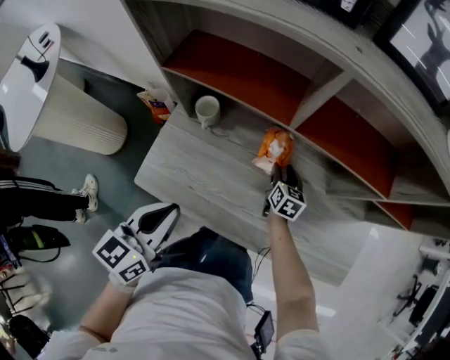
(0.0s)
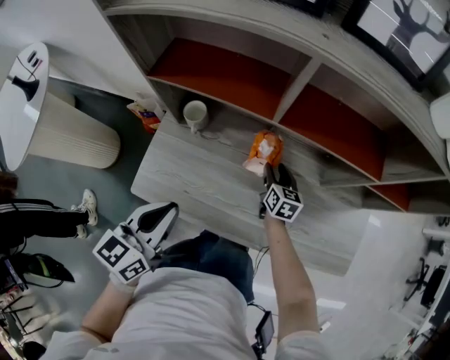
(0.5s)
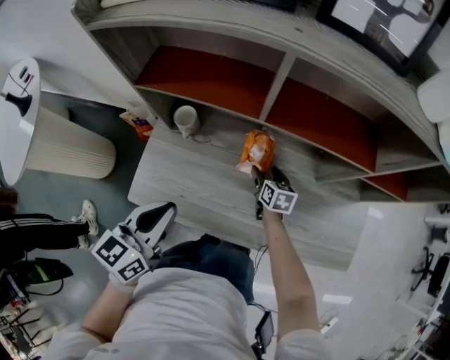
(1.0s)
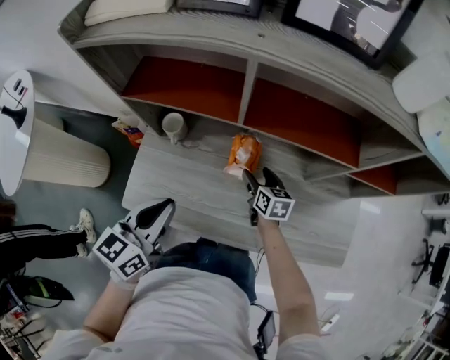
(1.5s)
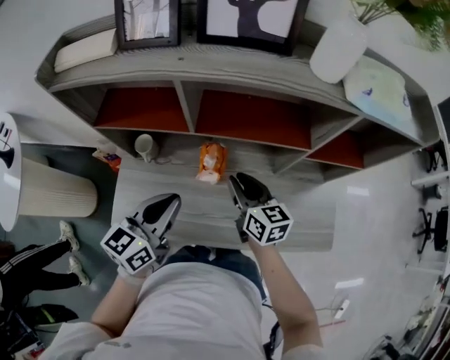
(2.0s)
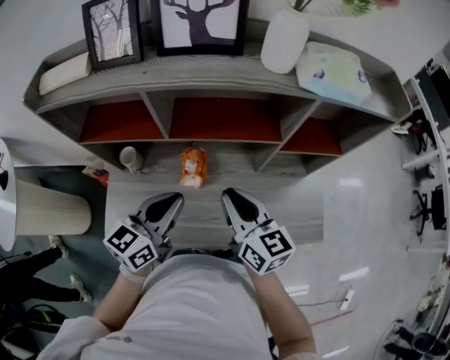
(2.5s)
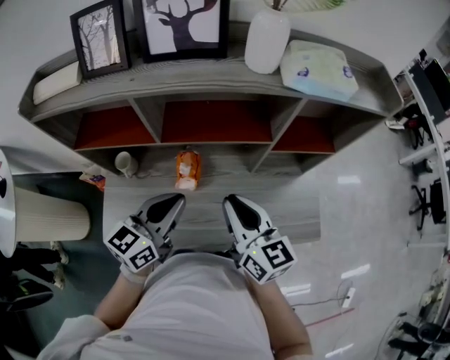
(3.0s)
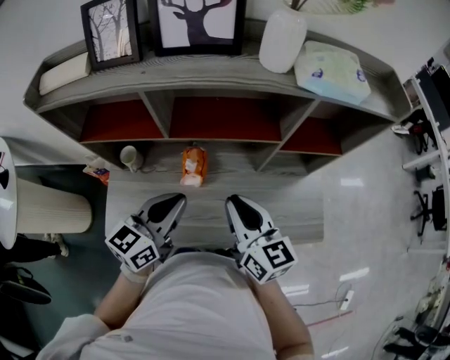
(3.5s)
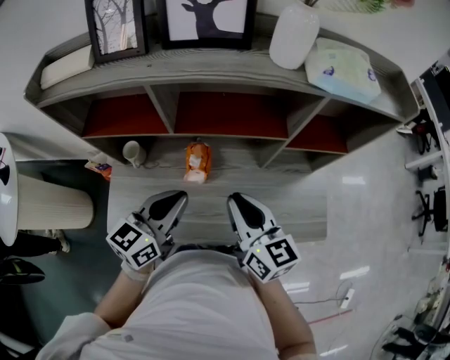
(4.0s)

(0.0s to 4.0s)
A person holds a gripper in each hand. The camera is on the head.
0.0s - 2.0s: The left gripper is displaced to the right, forward and upward by some 15 cm; the right gripper shifts roughly 20 cm upward, and opens, then closes again.
2.0s - 4.0s: The right gripper is displaced upward and backward by approximately 15 cm. The left gripper is displaced to the right by some 5 cm.

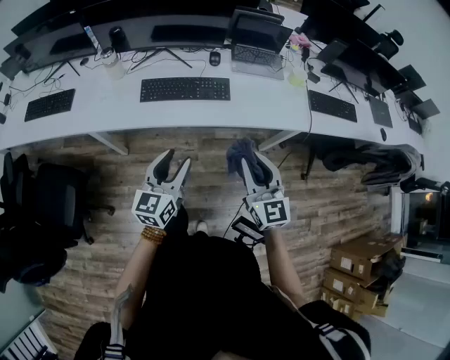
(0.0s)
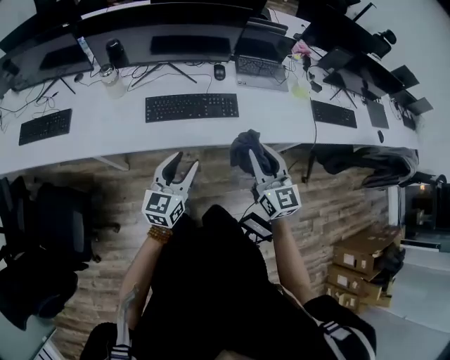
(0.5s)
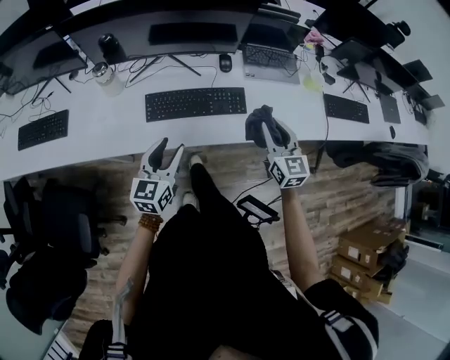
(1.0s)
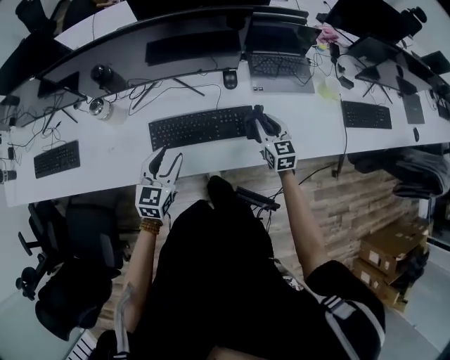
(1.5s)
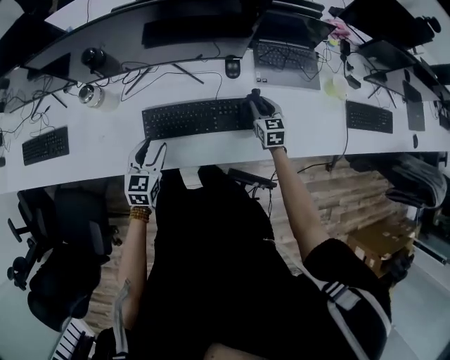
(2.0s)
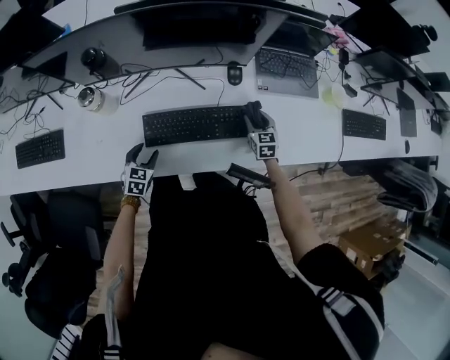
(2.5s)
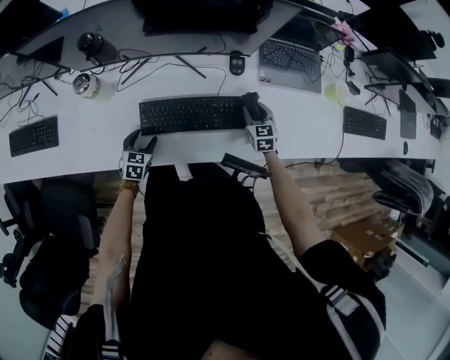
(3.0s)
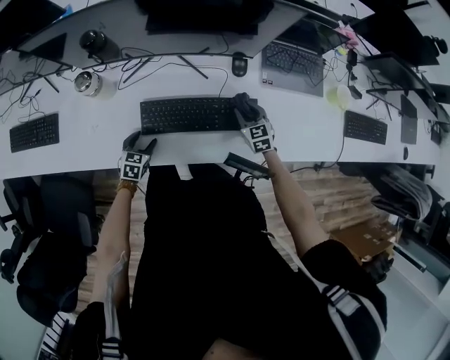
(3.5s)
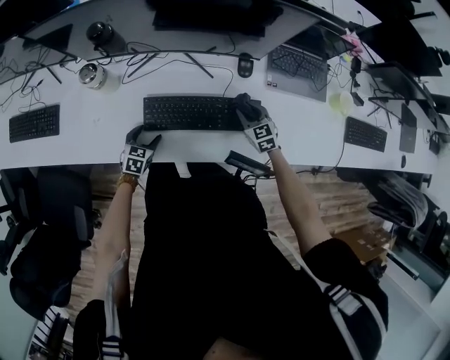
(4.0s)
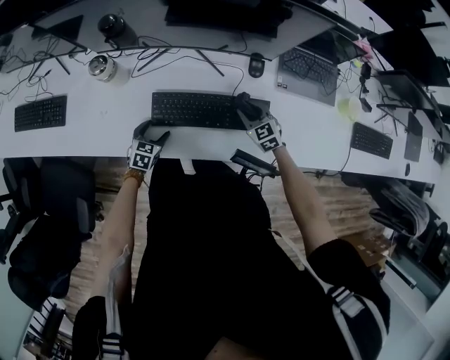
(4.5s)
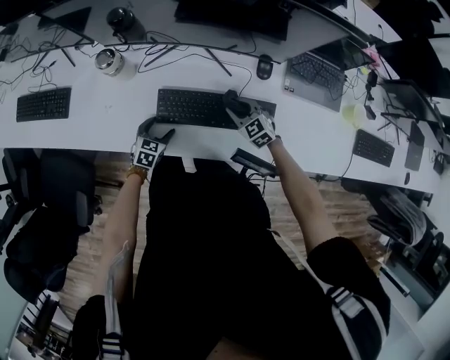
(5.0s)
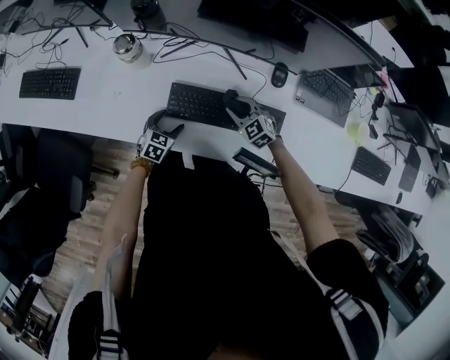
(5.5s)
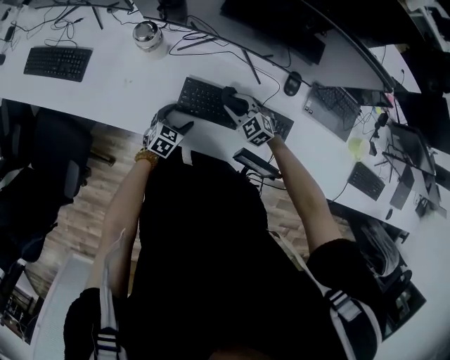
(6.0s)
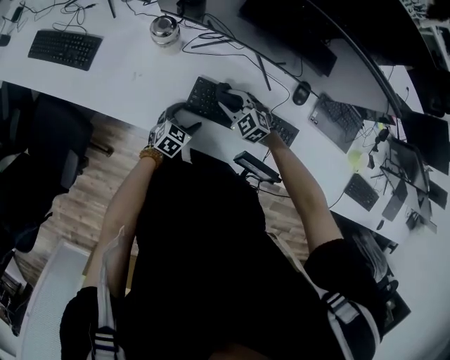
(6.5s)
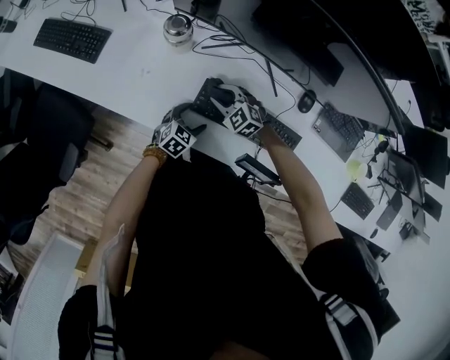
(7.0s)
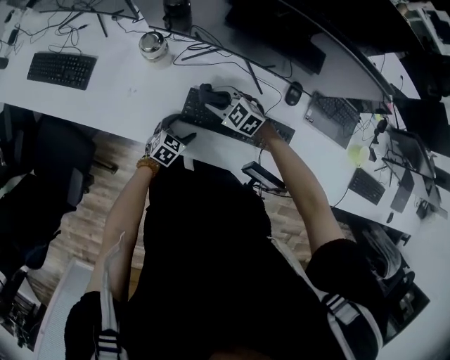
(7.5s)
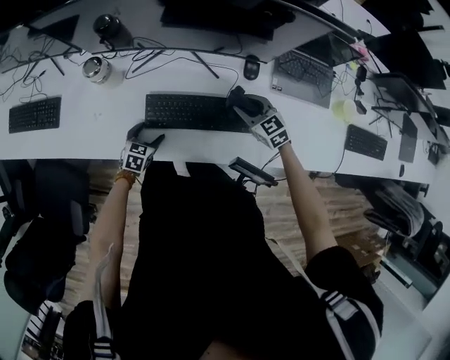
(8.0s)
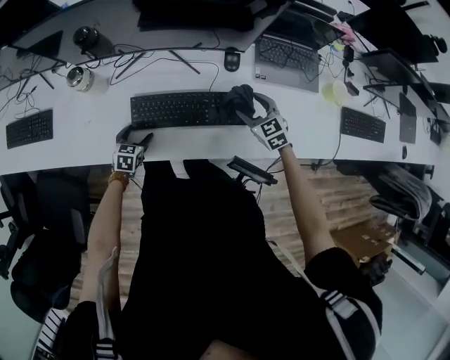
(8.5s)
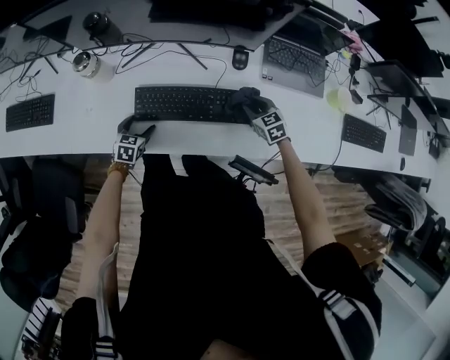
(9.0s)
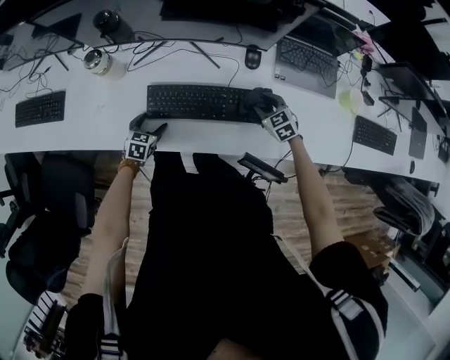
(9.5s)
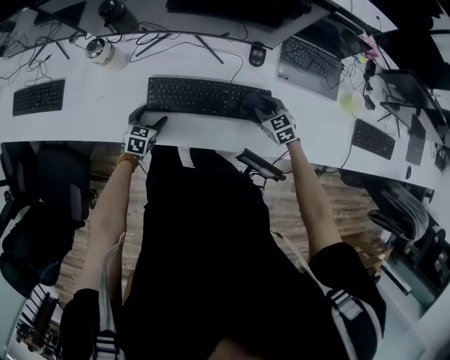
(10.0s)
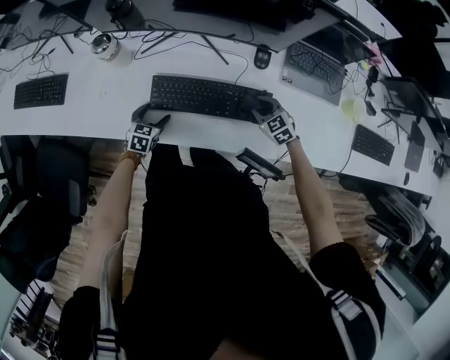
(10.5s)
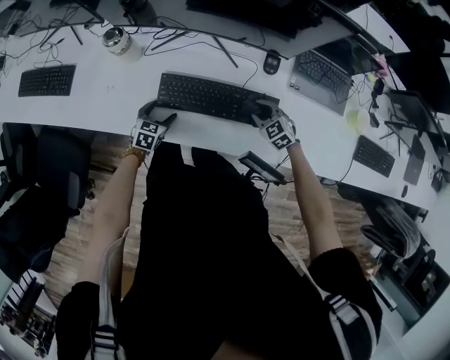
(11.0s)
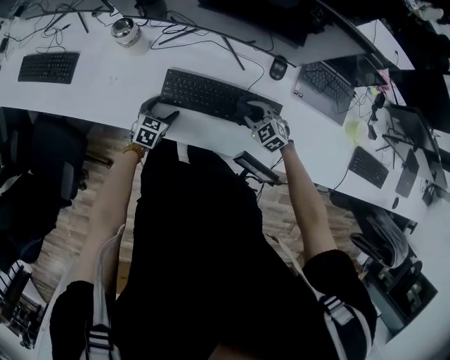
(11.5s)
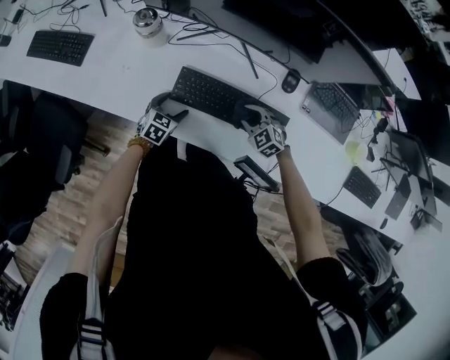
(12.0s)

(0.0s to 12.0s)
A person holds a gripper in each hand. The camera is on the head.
0.0s - 2.0s: The left gripper moves forward, downward and to the left, about 40 cm, and changes its angle by about 30 degrees. Meanwhile the right gripper travels forward and downward by some 50 cm, and rotates roughly 30 degrees.
2.0s - 4.0s: The right gripper heads to the left, covering some 10 cm, and rotates about 20 degrees, while the left gripper travels downward by approximately 15 cm.
4.0s - 6.0s: The right gripper goes about 20 cm to the left, and turns by some 40 degrees.
6.0s - 8.0s: The right gripper travels to the right and upward by roughly 15 cm, and changes its angle by some 30 degrees.
8.0s - 10.0s: The right gripper shifts about 10 cm downward and to the right, and opens and closes again.
10.0s - 12.0s: The right gripper heads to the left, covering about 15 cm, and rotates roughly 30 degrees.

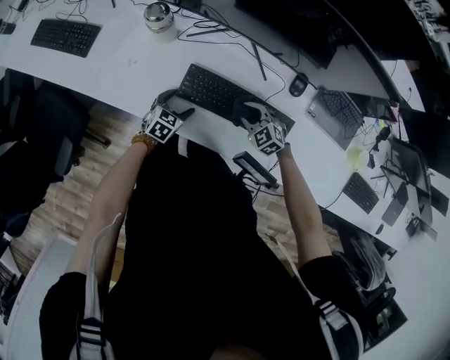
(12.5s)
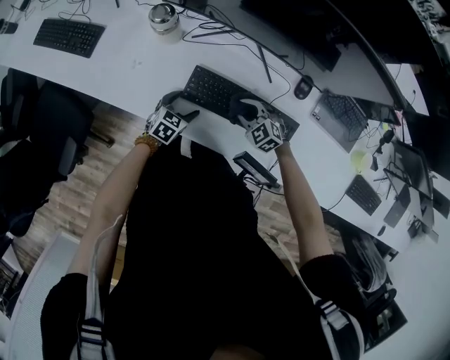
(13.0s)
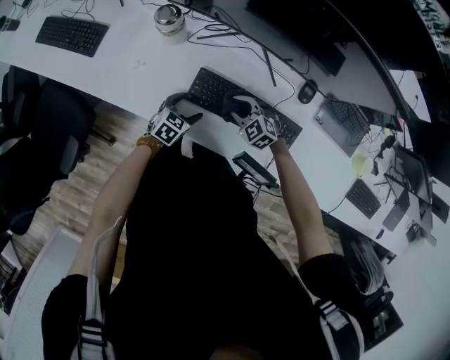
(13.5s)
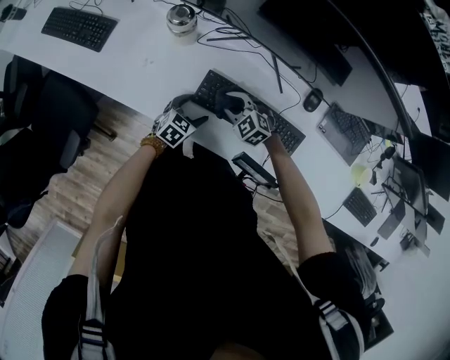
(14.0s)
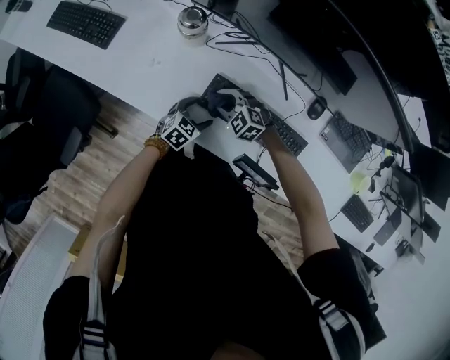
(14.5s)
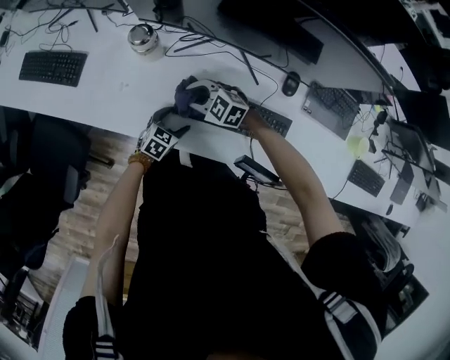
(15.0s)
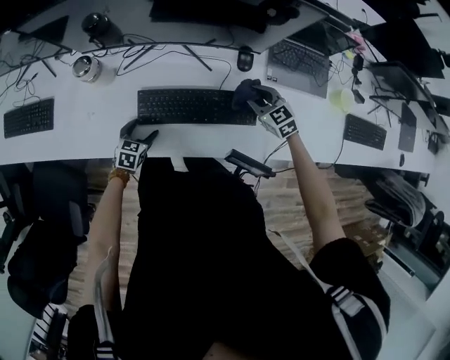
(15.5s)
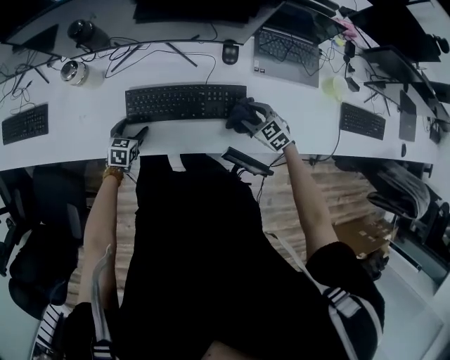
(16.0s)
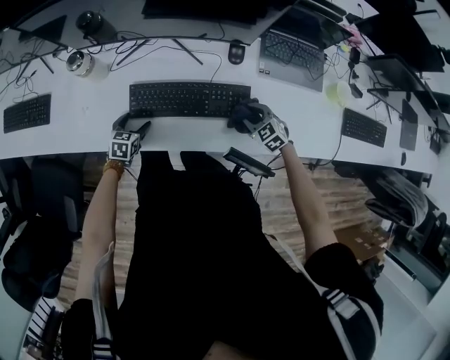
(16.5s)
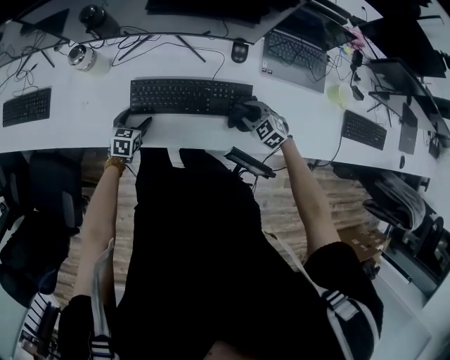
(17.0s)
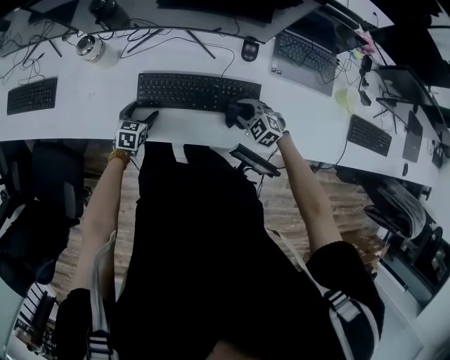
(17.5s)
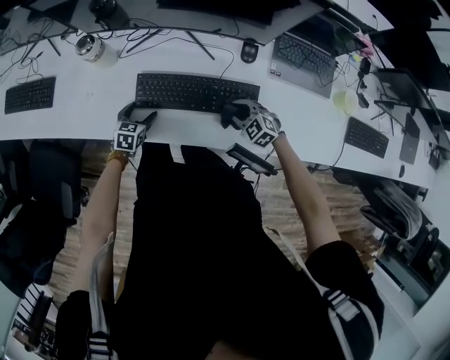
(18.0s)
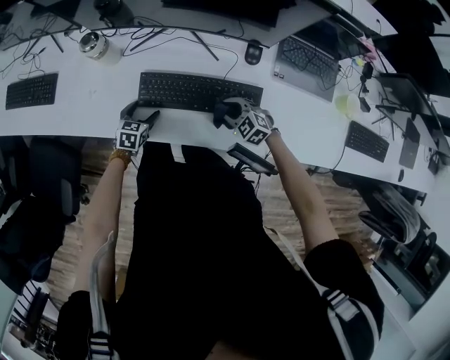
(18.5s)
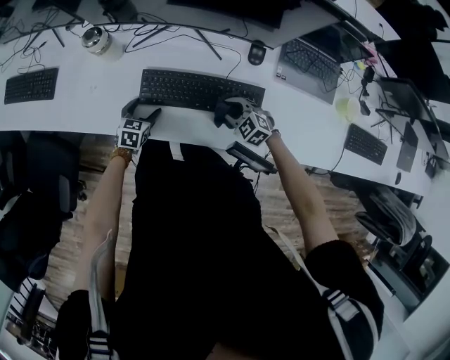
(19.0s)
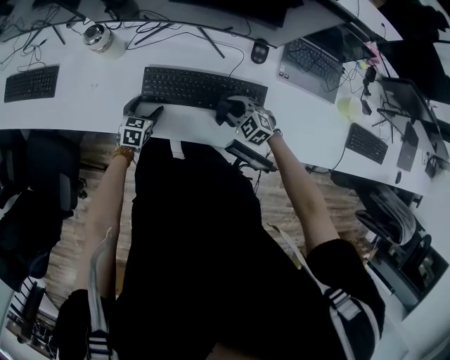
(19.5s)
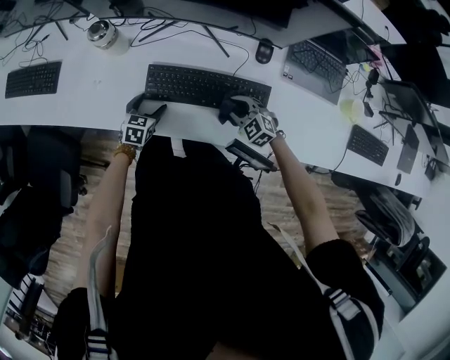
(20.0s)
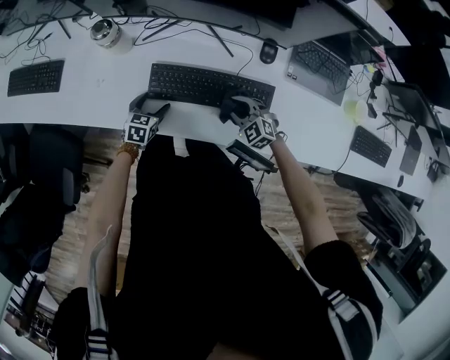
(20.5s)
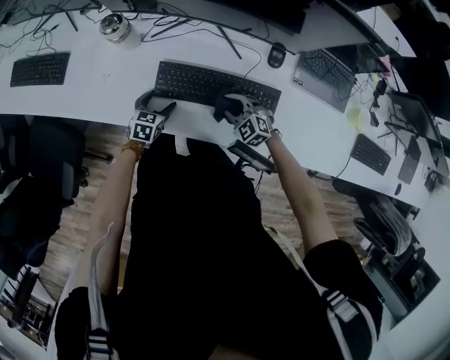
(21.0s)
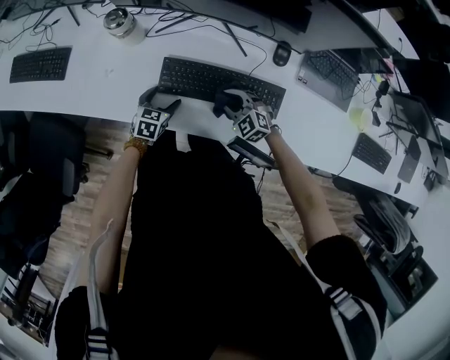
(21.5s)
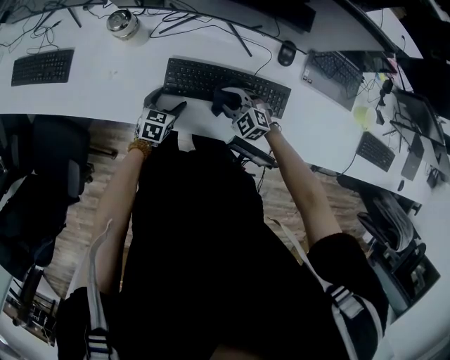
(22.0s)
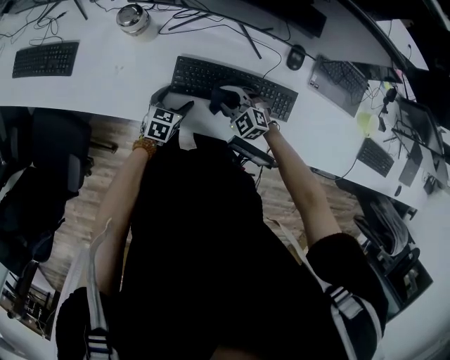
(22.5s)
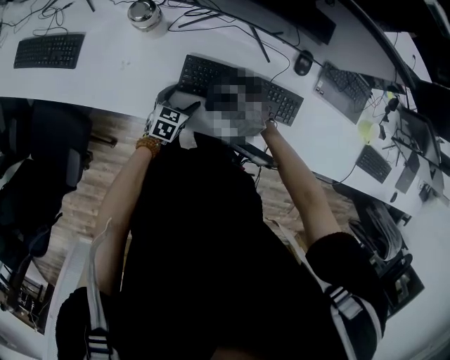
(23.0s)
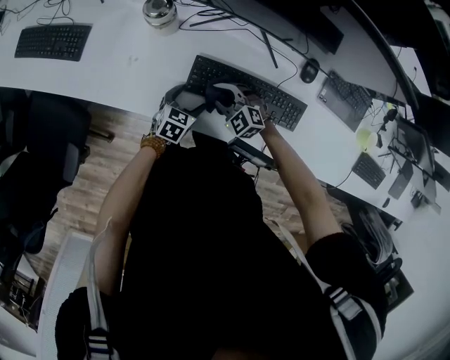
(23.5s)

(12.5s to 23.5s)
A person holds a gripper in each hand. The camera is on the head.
12.5s - 14.5s: The right gripper moves to the left, some 15 cm.
14.5s - 16.0s: The right gripper shifts by some 40 cm, rotates roughly 50 degrees, and opens its fingers.
16.0s - 18.0s: The right gripper is displaced to the left by roughly 10 cm, swivels about 20 degrees, and closes its fingers.
18.0s - 20.0s: The grippers make only small movements.
20.0s - 21.5s: The right gripper travels to the left by roughly 5 cm.
21.5s - 23.5s: The right gripper travels to the left by roughly 10 cm.
